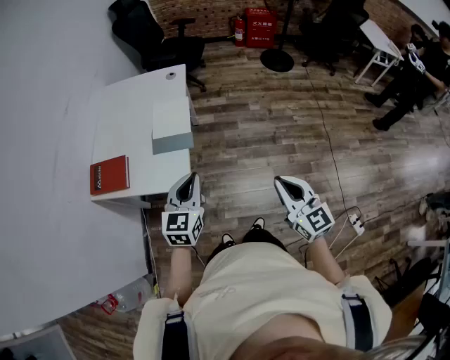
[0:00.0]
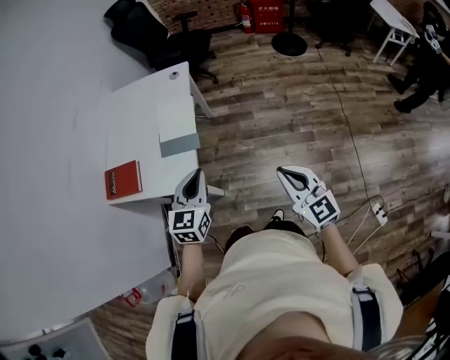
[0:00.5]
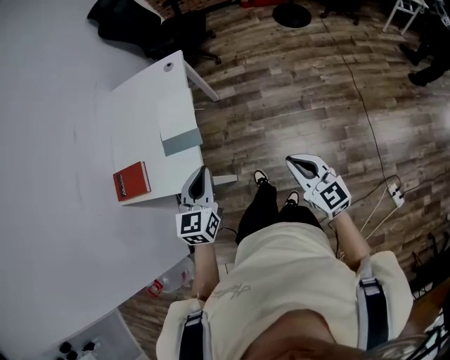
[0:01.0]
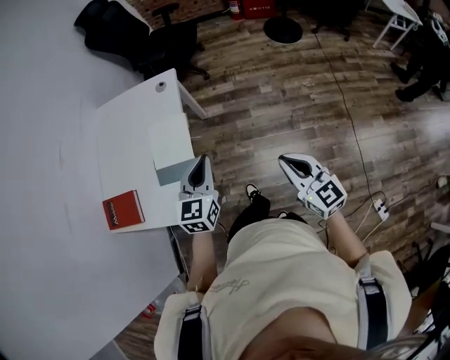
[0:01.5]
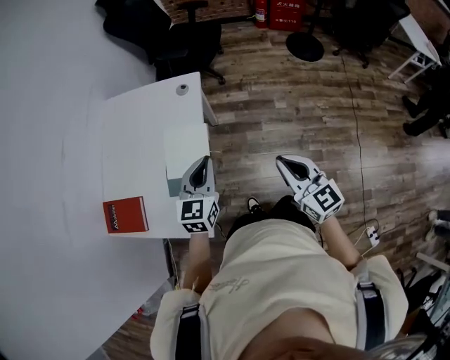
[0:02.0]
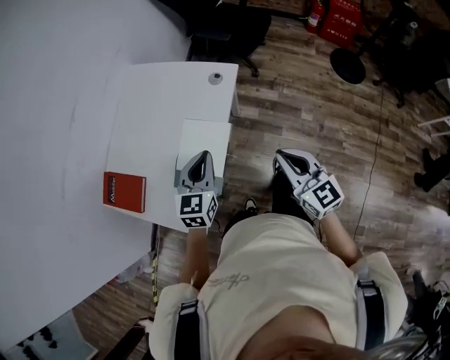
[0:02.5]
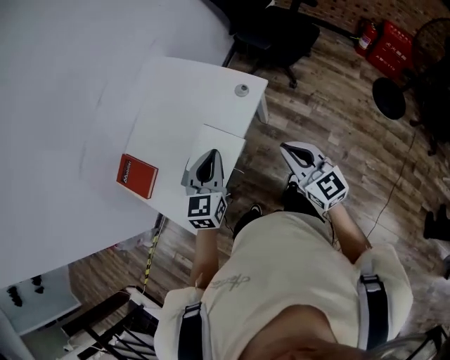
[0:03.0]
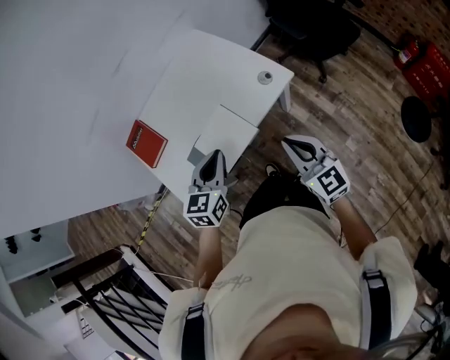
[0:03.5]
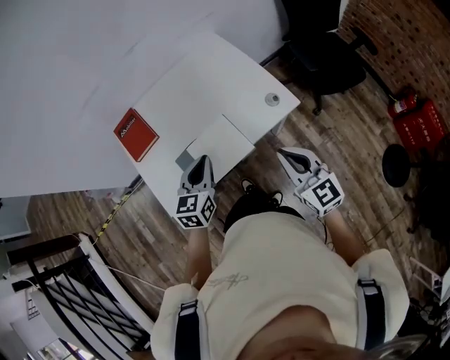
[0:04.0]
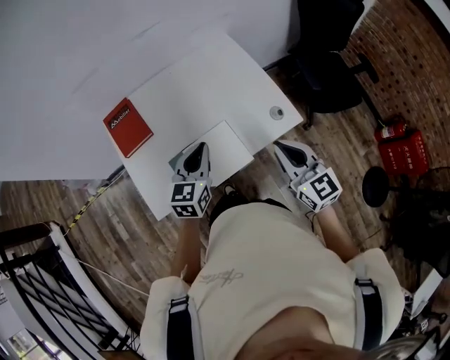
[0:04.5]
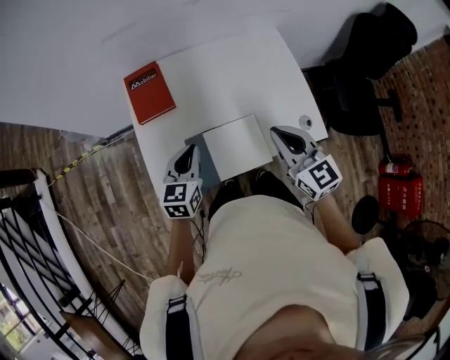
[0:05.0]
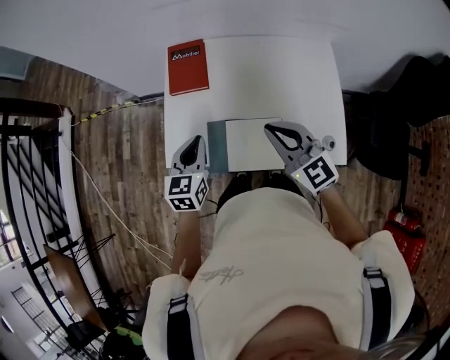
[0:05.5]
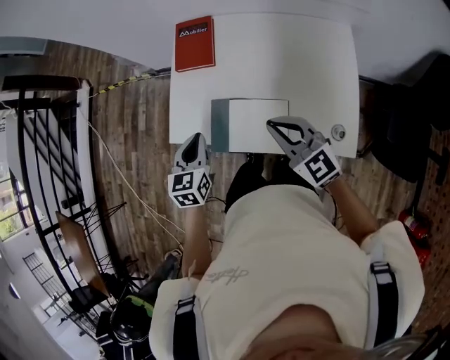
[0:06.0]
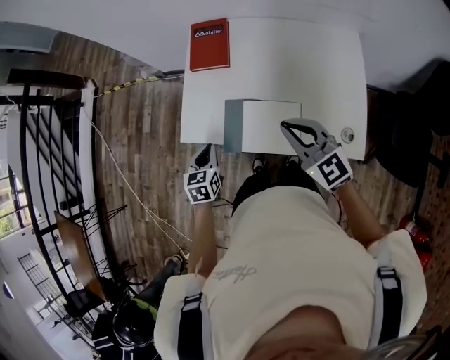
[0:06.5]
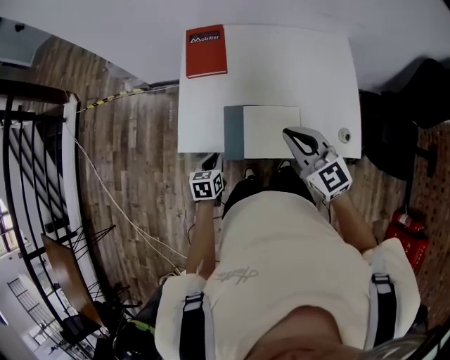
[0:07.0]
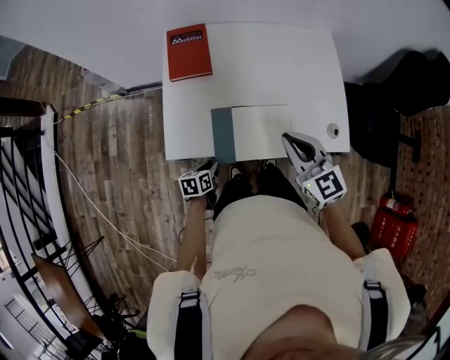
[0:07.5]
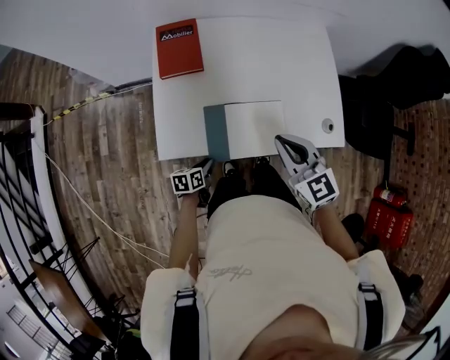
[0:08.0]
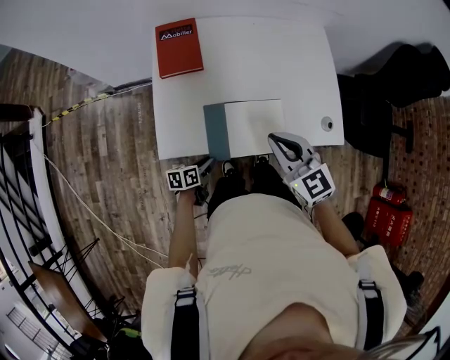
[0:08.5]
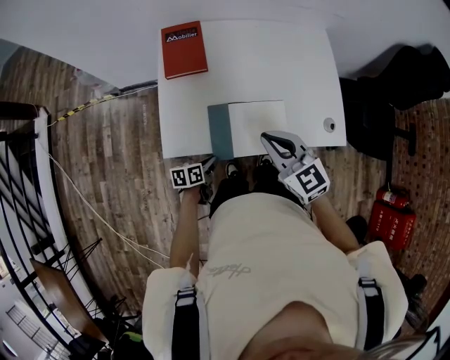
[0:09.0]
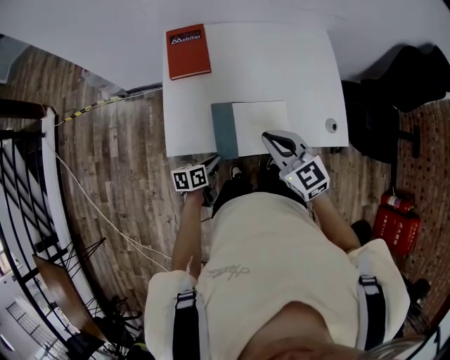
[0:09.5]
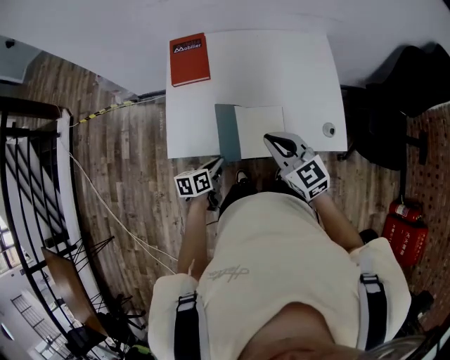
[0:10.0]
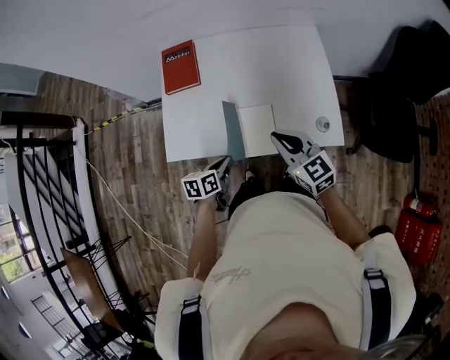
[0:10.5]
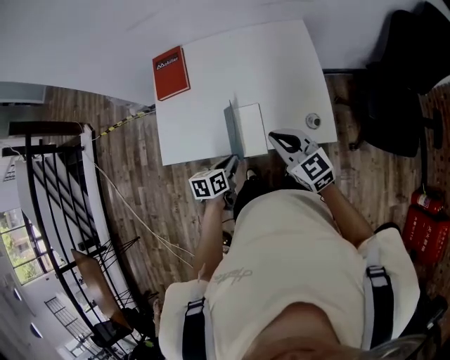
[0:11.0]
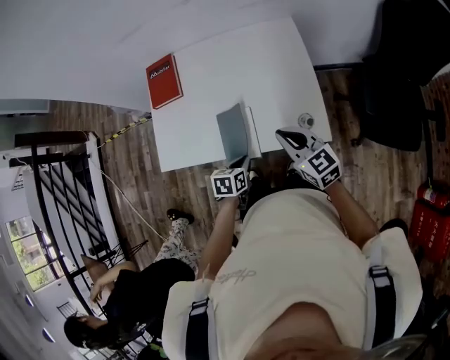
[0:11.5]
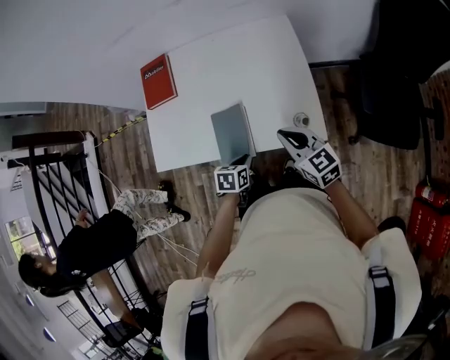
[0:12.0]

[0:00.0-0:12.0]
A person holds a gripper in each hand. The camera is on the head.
0:00.0 to 0:02.0: The grippers both shift forward by about 30 cm.
0:02.0 to 0:04.0: The left gripper ends up approximately 10 cm from where it was, and changes its angle by approximately 60 degrees. The right gripper moves some 30 cm, and changes its angle by approximately 60 degrees.
0:04.0 to 0:06.0: The left gripper moves some 15 cm, and turns by approximately 50 degrees, while the right gripper shifts by about 20 cm, and turns by about 50 degrees.
0:06.0 to 0:08.0: The right gripper shifts by about 5 cm, and turns by about 20 degrees. The left gripper travels downward by about 25 cm, and turns by approximately 50 degrees.
0:08.0 to 0:10.0: The left gripper goes approximately 10 cm upward.
0:10.0 to 0:12.0: Both grippers move to the right, about 25 cm. The left gripper swivels approximately 30 degrees.

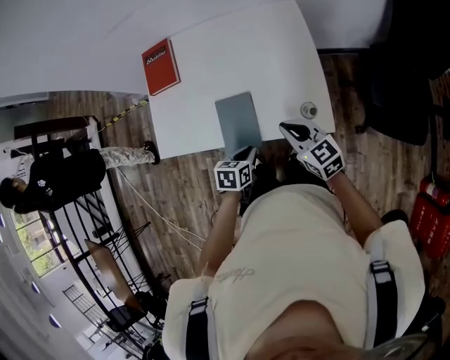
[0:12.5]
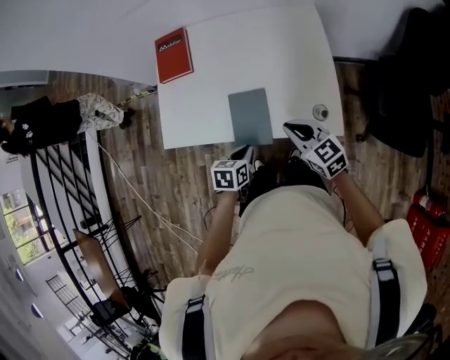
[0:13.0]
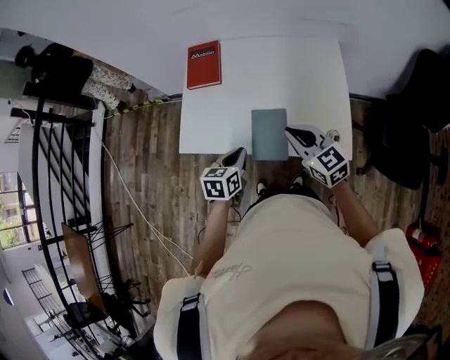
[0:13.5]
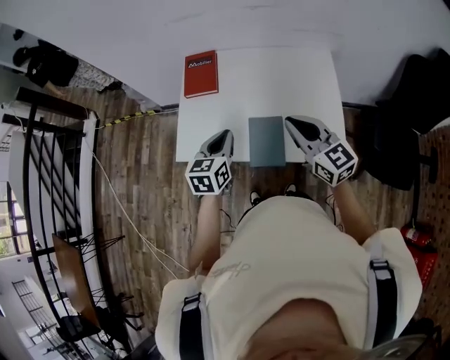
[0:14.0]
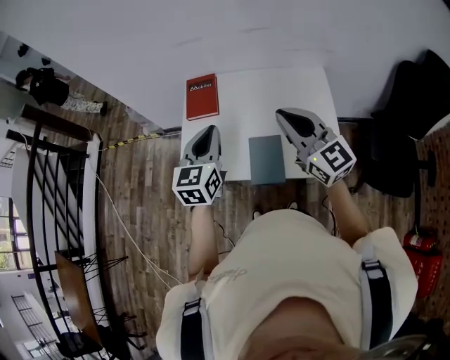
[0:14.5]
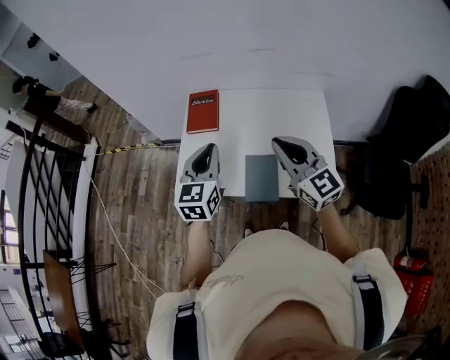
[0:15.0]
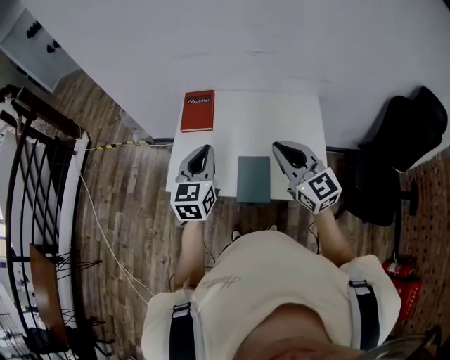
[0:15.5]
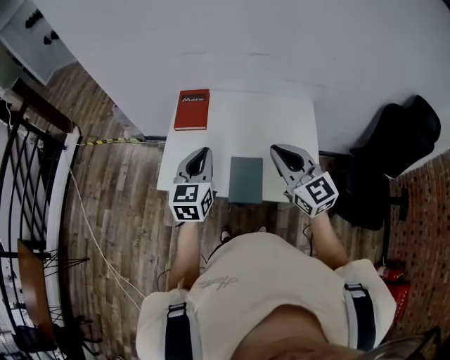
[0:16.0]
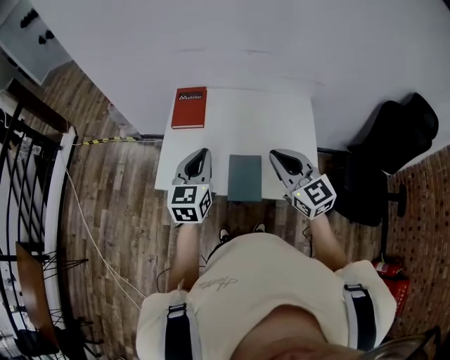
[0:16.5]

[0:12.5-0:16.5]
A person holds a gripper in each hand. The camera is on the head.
0:12.5 to 0:14.5: The left gripper shifts some 40 cm upward, to the left and forward, and angles its fingers upward, by roughly 40 degrees. The right gripper goes approximately 25 cm upward and to the left, and rotates some 30 degrees.
0:14.5 to 0:16.5: The right gripper travels downward by some 5 cm.

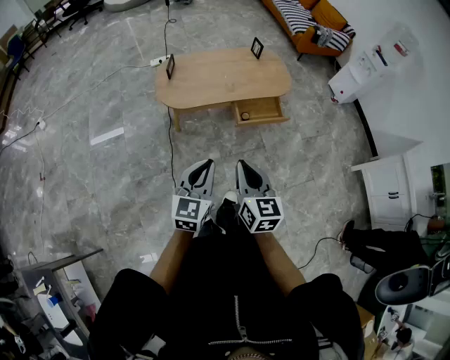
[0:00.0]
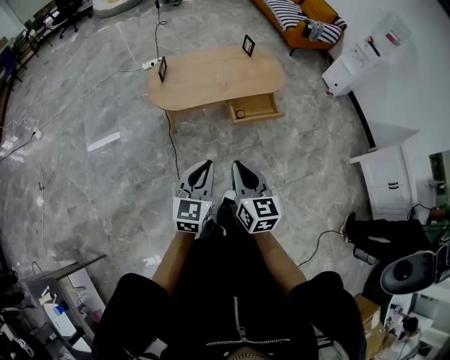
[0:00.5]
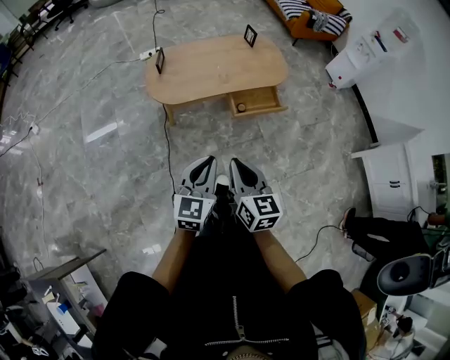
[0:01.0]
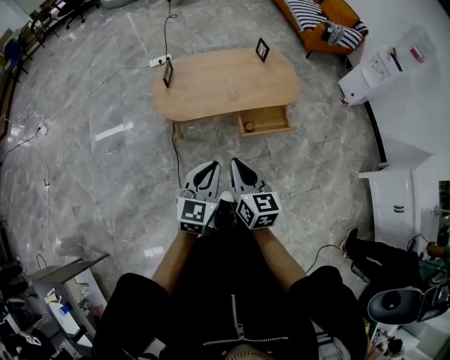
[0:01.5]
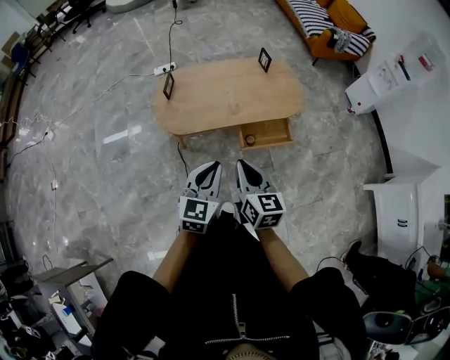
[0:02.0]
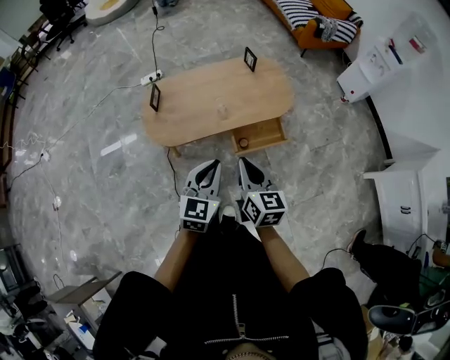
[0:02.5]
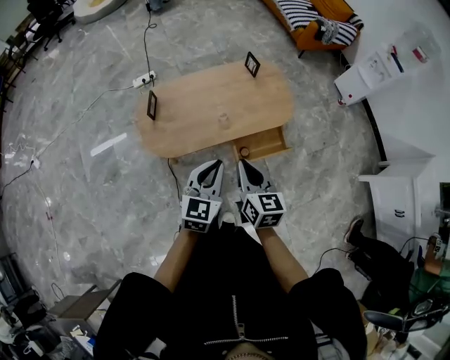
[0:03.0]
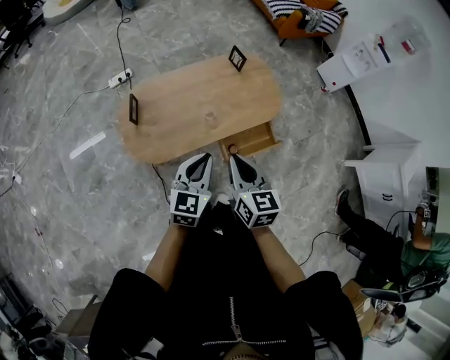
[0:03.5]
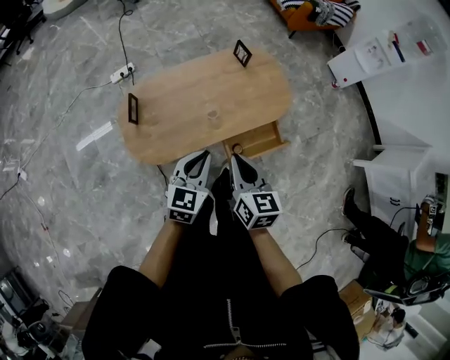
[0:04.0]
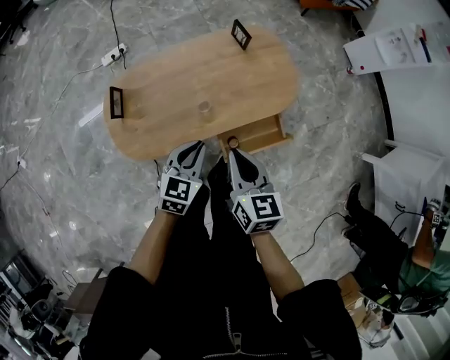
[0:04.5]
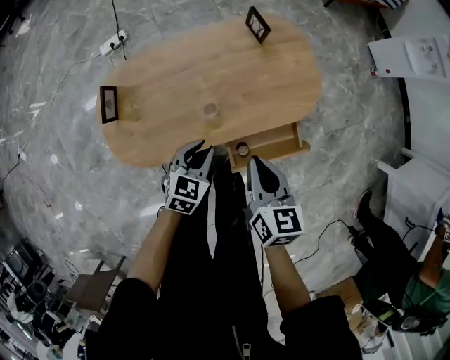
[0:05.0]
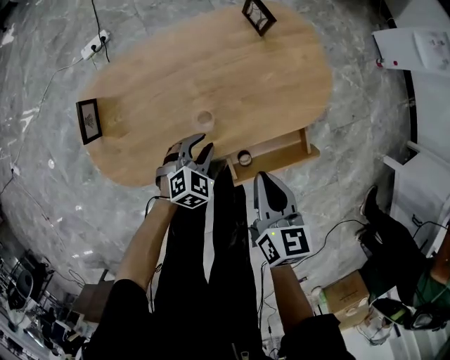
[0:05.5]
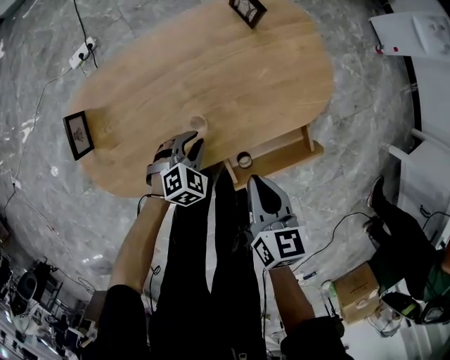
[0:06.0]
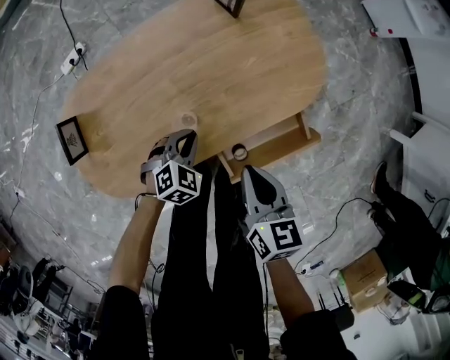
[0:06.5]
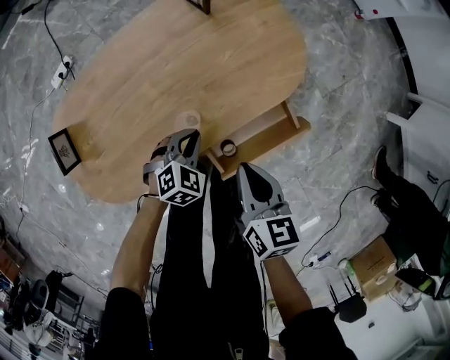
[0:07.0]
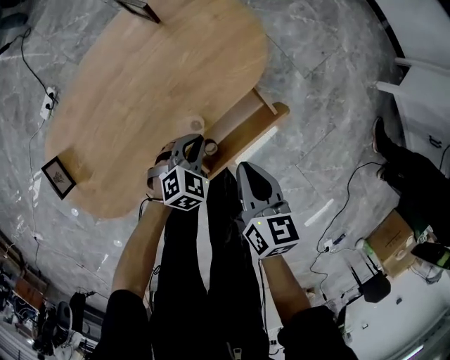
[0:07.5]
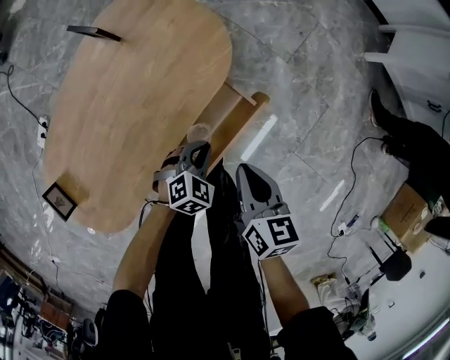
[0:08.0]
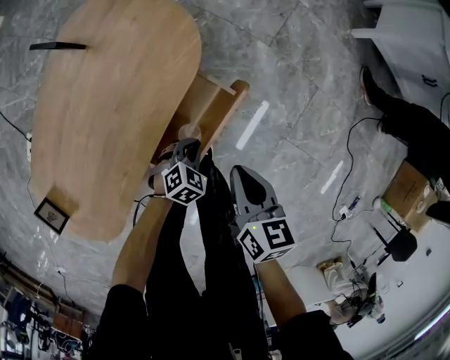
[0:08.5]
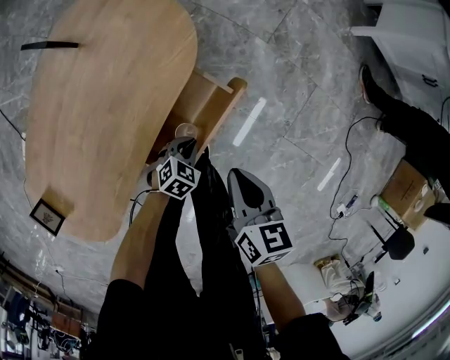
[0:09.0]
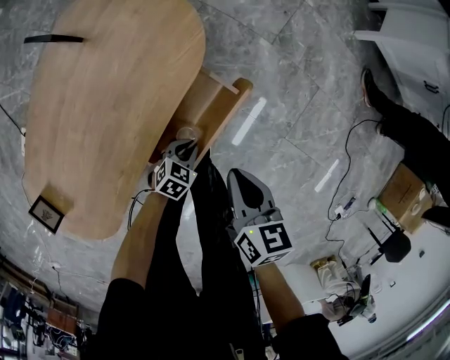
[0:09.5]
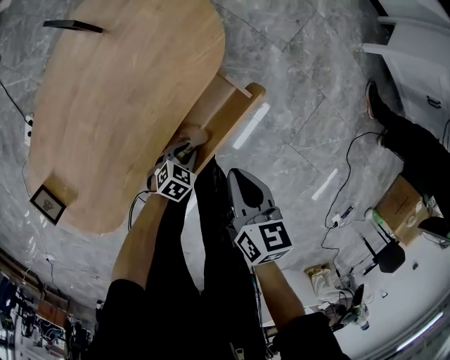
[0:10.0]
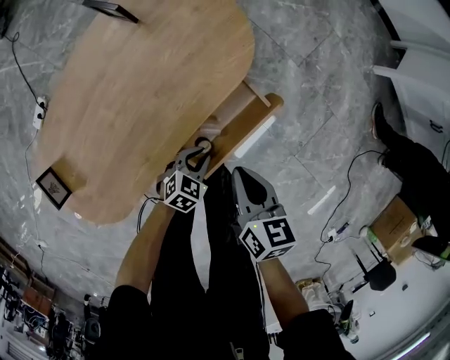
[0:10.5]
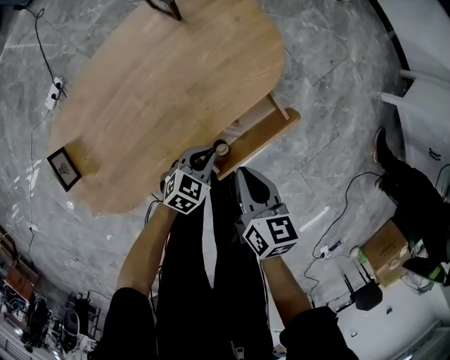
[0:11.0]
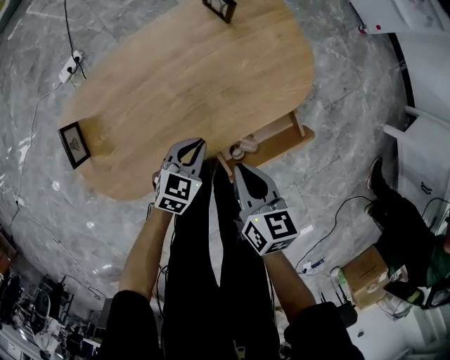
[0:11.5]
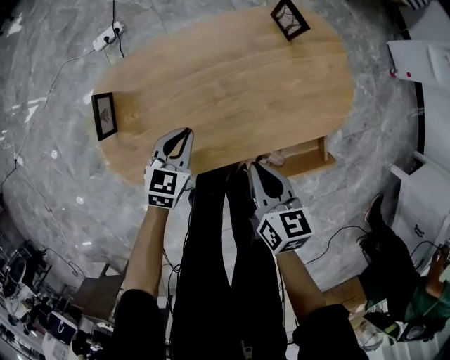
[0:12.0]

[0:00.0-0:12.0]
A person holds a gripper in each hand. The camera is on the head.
0:00.0 to 0:02.0: Both grippers move forward, approximately 20 cm.
0:02.0 to 0:04.0: The two grippers go approximately 25 cm forward.
0:04.0 to 0:06.0: Both grippers move downward and forward, about 35 cm. The left gripper tips its fingers downward by some 40 degrees.
0:06.0 to 0:08.0: The left gripper ends up about 25 cm from where it was, and turns by roughly 30 degrees. Meanwhile the right gripper moves about 15 cm, and turns by about 30 degrees.
0:08.0 to 0:10.0: The left gripper shifts roughly 15 cm downward and backward, and swivels roughly 20 degrees.
0:10.0 to 0:12.0: The right gripper changes place by some 25 cm, and changes its angle by some 40 degrees, while the left gripper changes place by approximately 40 cm, and turns by approximately 60 degrees.
